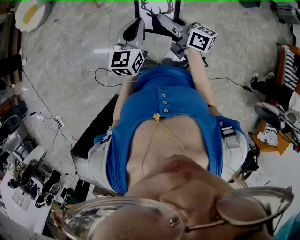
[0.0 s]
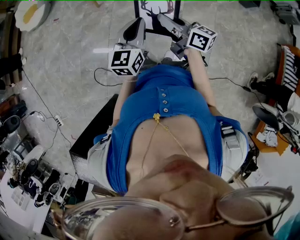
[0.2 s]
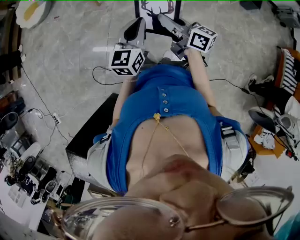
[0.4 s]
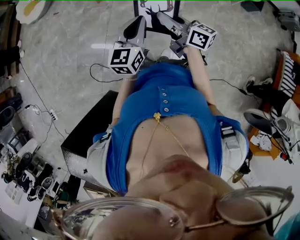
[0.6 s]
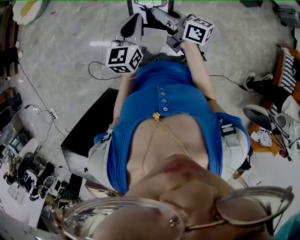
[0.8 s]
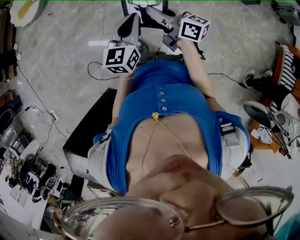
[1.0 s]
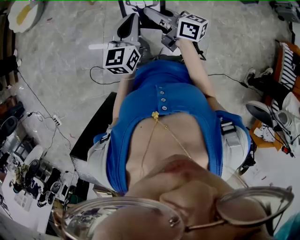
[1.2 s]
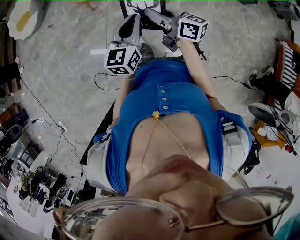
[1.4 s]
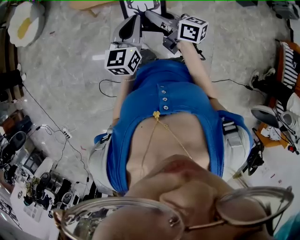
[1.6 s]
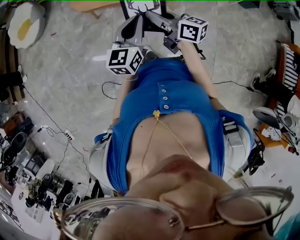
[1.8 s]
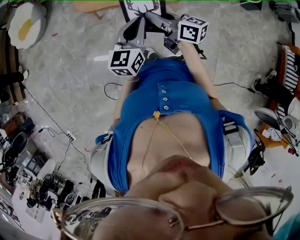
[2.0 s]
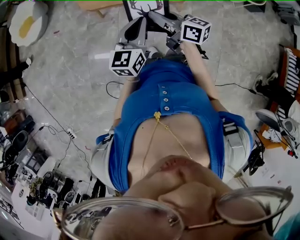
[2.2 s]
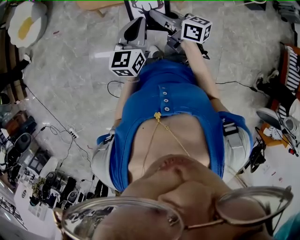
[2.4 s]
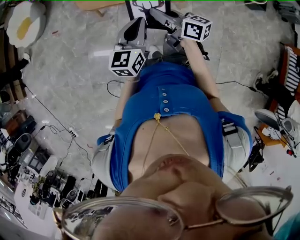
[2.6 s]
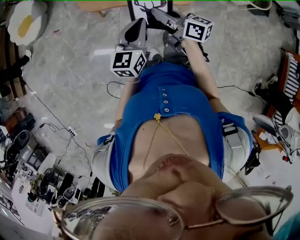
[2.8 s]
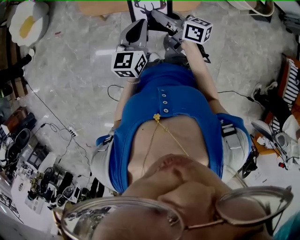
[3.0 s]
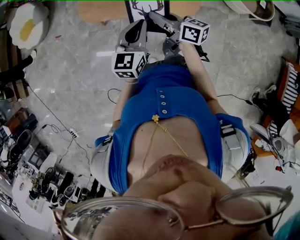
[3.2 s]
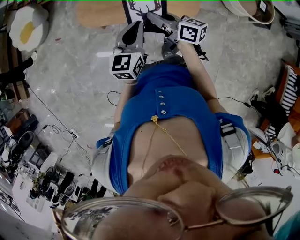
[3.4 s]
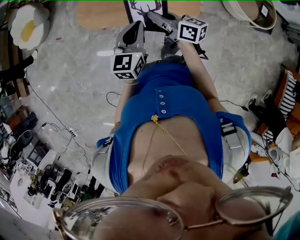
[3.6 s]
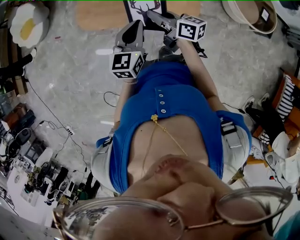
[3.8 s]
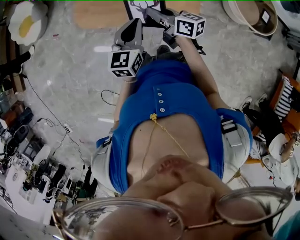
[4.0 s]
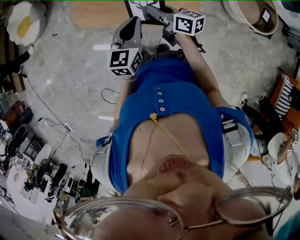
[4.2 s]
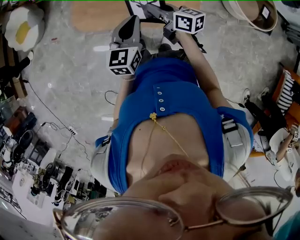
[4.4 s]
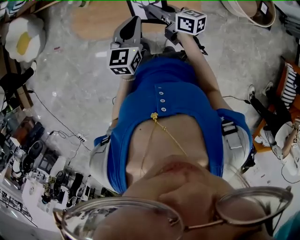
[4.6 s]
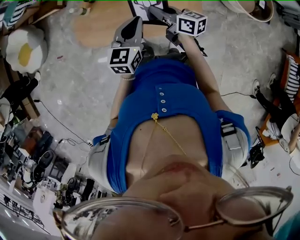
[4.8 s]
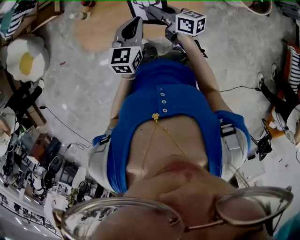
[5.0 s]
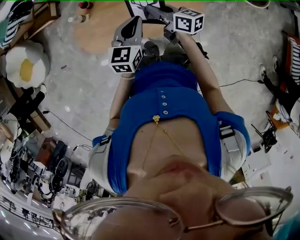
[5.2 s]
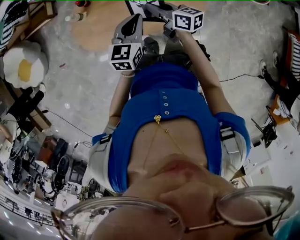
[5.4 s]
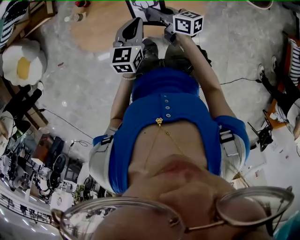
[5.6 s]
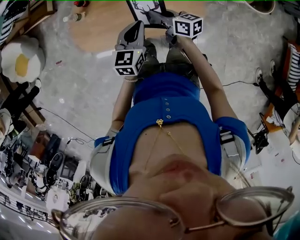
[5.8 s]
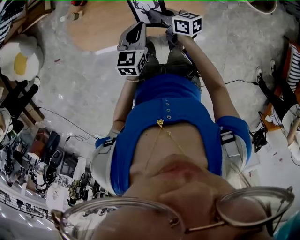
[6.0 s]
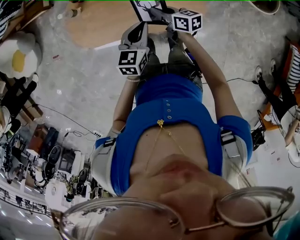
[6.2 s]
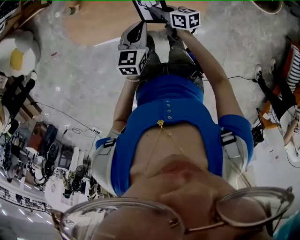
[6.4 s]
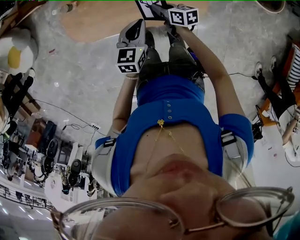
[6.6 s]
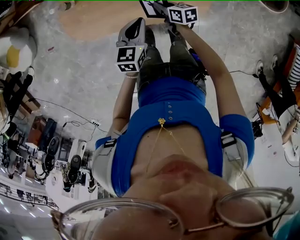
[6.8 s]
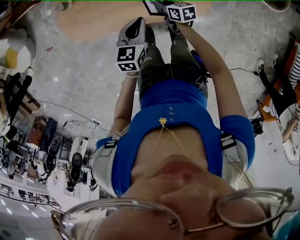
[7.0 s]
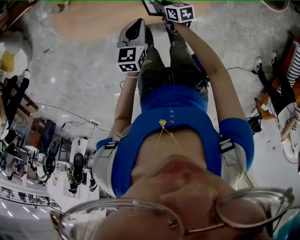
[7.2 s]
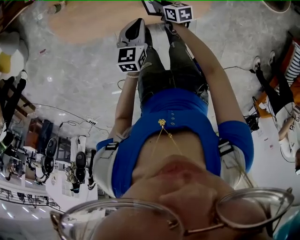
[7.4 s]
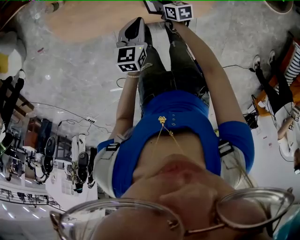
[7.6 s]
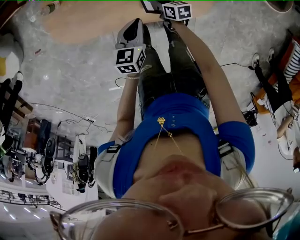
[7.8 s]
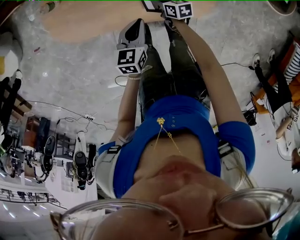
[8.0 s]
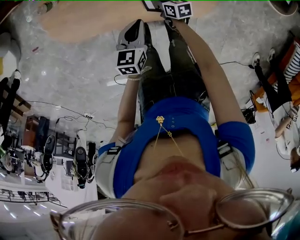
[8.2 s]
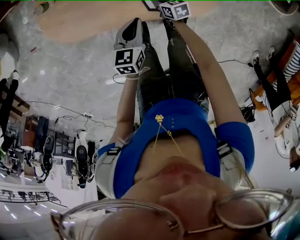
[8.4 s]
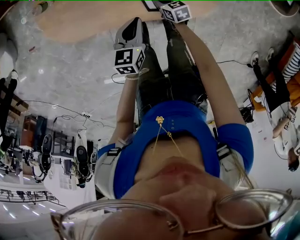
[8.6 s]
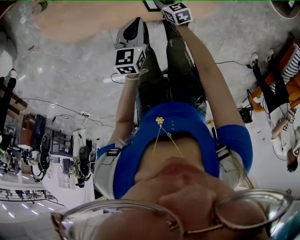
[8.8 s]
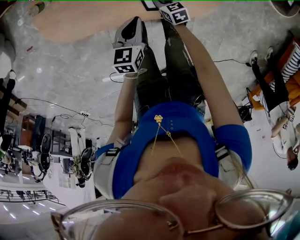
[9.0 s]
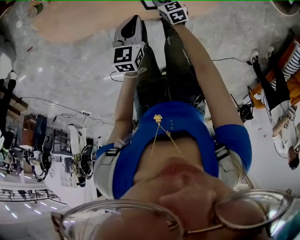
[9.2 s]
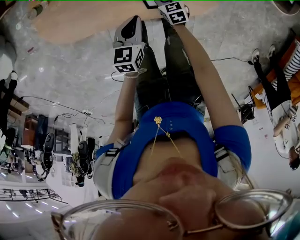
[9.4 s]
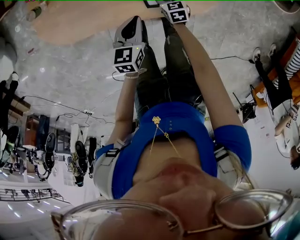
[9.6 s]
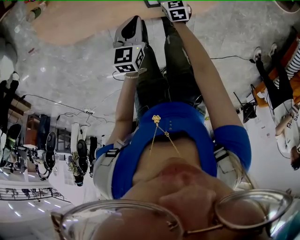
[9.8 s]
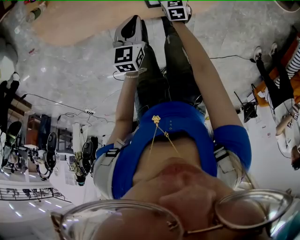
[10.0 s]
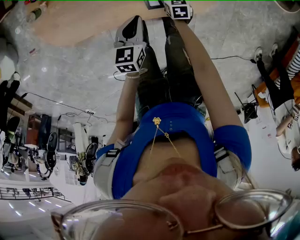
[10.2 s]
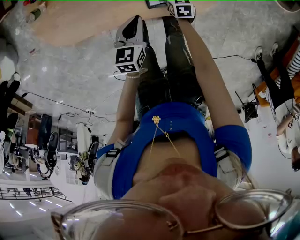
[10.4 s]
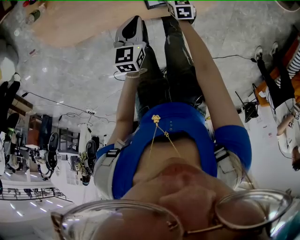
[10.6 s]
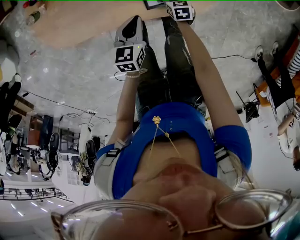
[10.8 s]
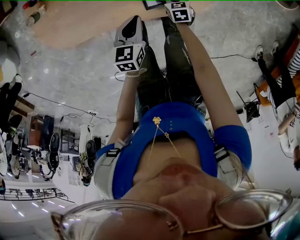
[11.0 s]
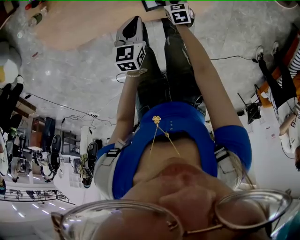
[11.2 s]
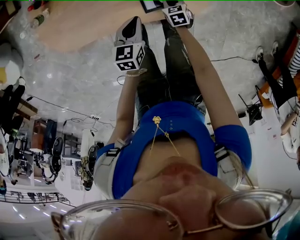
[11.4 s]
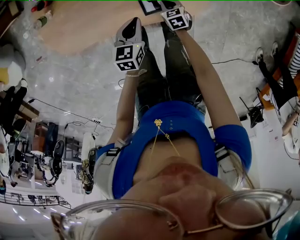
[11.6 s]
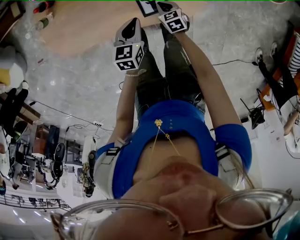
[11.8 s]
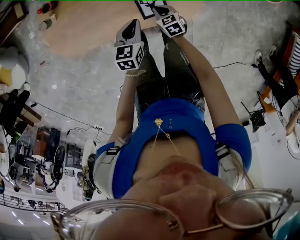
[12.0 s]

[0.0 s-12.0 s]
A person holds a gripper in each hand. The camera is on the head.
0.0 to 1.6 s: The grippers both shift forward by roughly 15 cm.
1.6 to 3.0 s: The grippers both shift forward by some 20 cm.
3.0 to 4.4 s: The two grippers go roughly 25 cm forward and to the right.
4.4 to 6.0 s: The right gripper goes some 15 cm downward and forward, while the left gripper moves forward and downward, some 15 cm, and changes its angle by some 20 degrees.
6.0 to 7.6 s: The left gripper travels downward by approximately 15 cm. Meanwhile the right gripper goes roughly 25 cm downward, and changes its angle by roughly 30 degrees.
7.6 to 9.0 s: Both grippers travel together downward, roughly 5 cm. The right gripper swivels some 20 degrees.
9.0 to 10.4 s: The right gripper shifts roughly 10 cm to the right, changes its angle by about 20 degrees, and opens up.
10.4 to 12.0 s: The left gripper is displaced upward by about 5 cm. The right gripper shifts some 10 cm upward and to the left, swivels some 20 degrees, and closes.

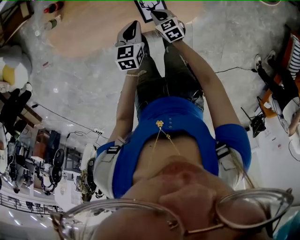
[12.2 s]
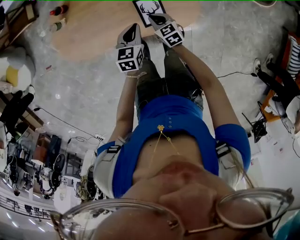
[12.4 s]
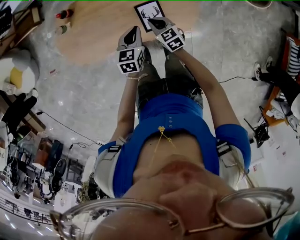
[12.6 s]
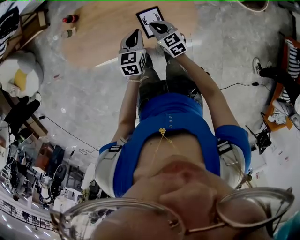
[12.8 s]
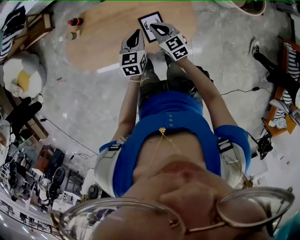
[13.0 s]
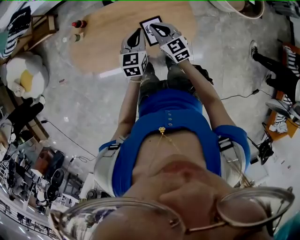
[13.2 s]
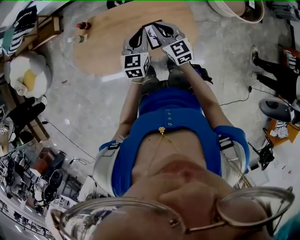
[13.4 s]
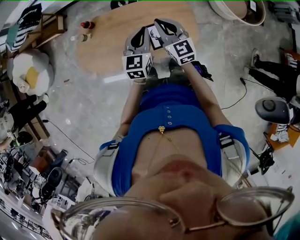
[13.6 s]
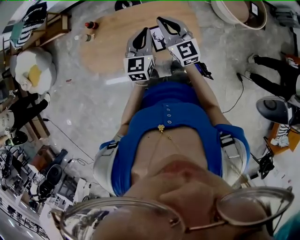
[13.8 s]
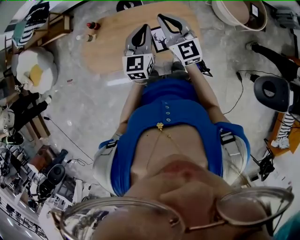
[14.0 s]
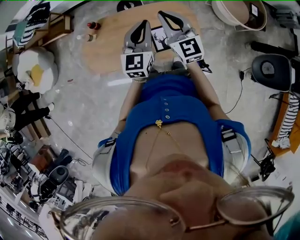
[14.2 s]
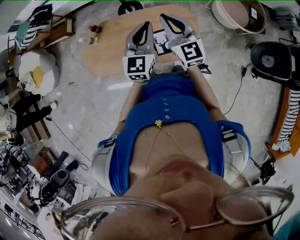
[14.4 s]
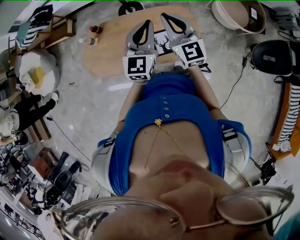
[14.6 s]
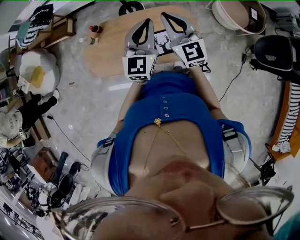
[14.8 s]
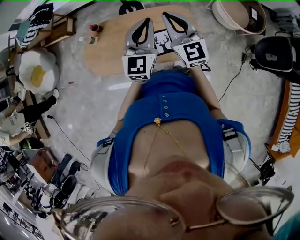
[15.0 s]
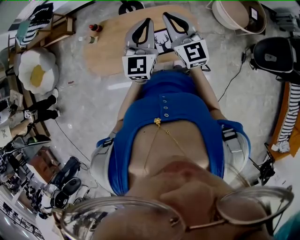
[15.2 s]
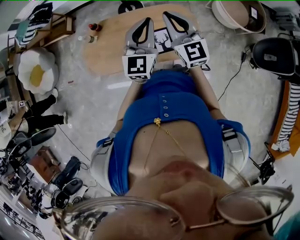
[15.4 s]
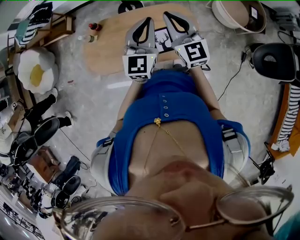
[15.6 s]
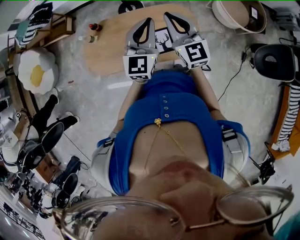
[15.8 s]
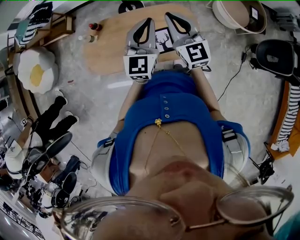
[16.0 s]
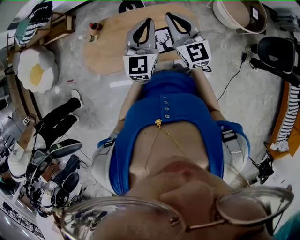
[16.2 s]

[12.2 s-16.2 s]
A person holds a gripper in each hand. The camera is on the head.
12.2 to 13.6 s: Both grippers travel together upward, roughly 30 cm. The left gripper swivels about 30 degrees; the right gripper tilts its fingers about 40 degrees upward.
13.6 to 14.8 s: The grippers both shift upward by approximately 15 cm.
14.8 to 16.2 s: Neither gripper changes place.

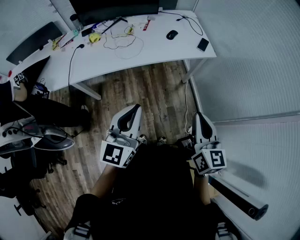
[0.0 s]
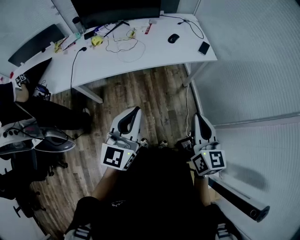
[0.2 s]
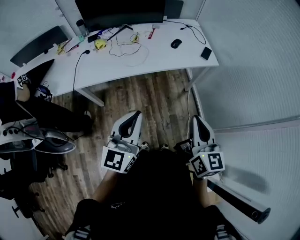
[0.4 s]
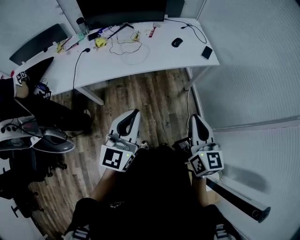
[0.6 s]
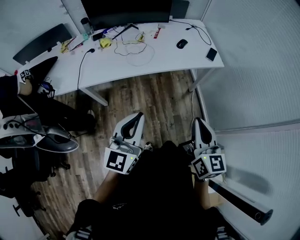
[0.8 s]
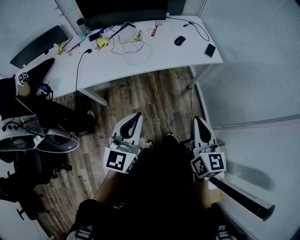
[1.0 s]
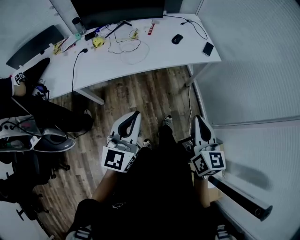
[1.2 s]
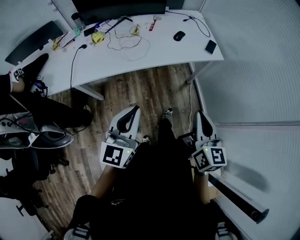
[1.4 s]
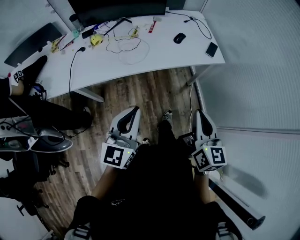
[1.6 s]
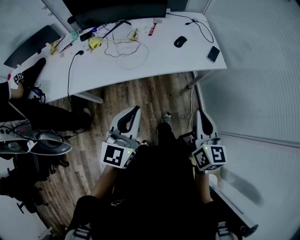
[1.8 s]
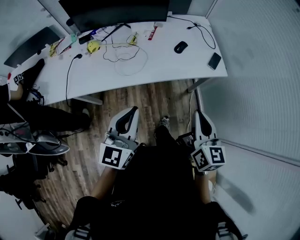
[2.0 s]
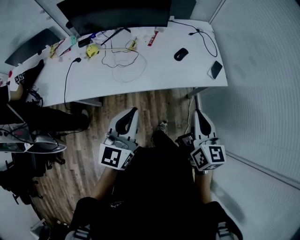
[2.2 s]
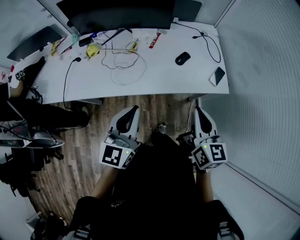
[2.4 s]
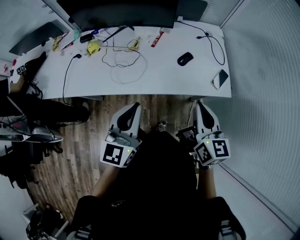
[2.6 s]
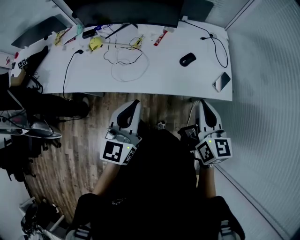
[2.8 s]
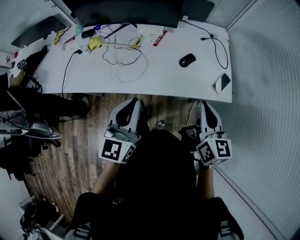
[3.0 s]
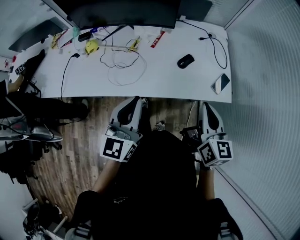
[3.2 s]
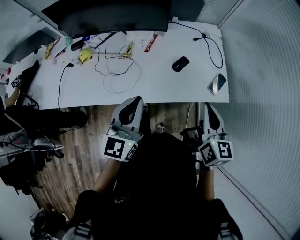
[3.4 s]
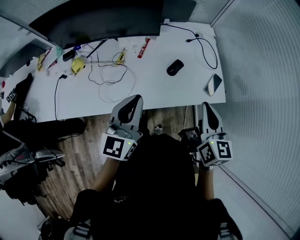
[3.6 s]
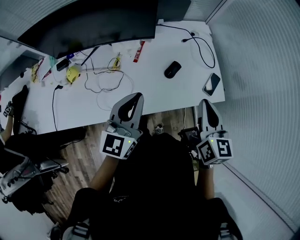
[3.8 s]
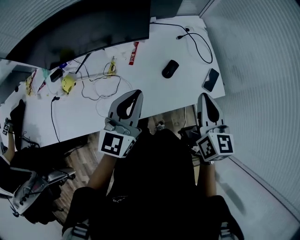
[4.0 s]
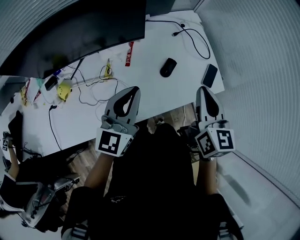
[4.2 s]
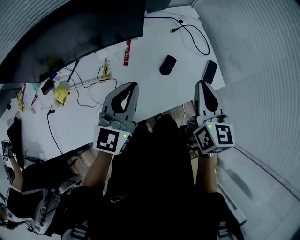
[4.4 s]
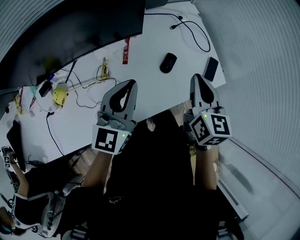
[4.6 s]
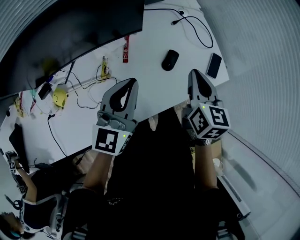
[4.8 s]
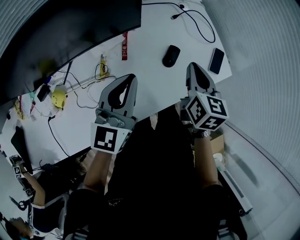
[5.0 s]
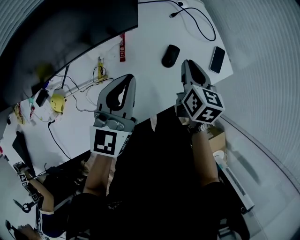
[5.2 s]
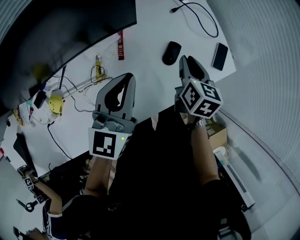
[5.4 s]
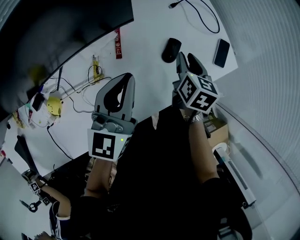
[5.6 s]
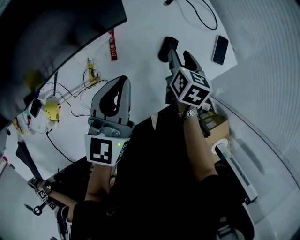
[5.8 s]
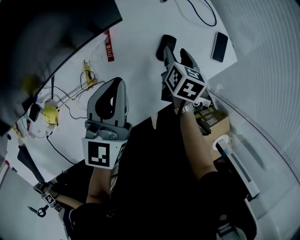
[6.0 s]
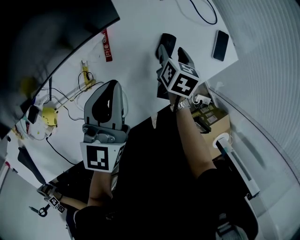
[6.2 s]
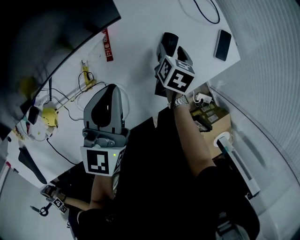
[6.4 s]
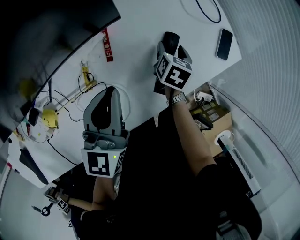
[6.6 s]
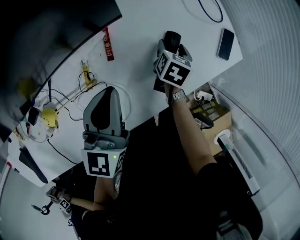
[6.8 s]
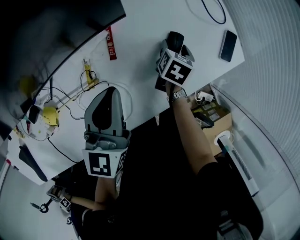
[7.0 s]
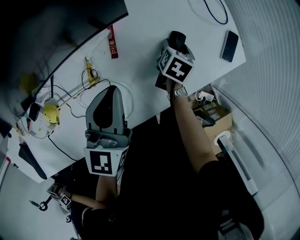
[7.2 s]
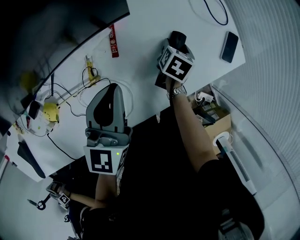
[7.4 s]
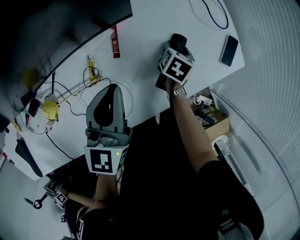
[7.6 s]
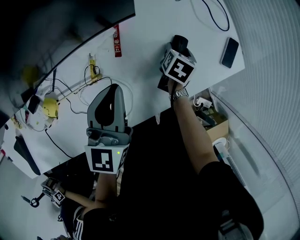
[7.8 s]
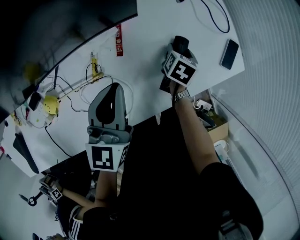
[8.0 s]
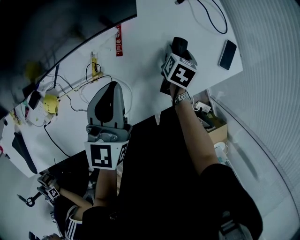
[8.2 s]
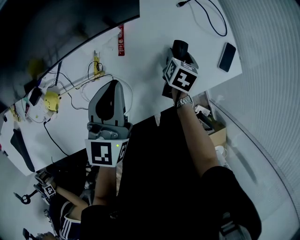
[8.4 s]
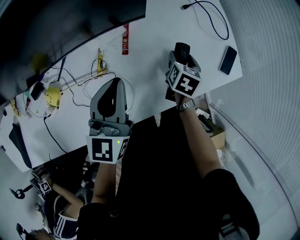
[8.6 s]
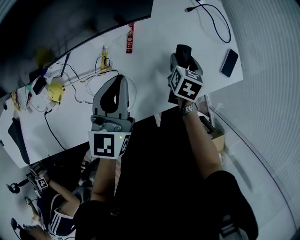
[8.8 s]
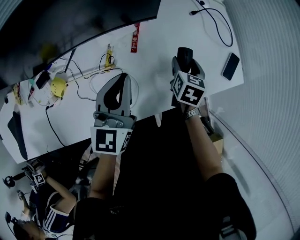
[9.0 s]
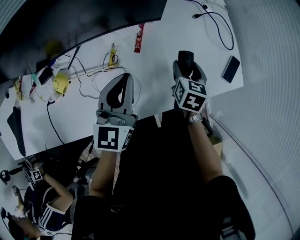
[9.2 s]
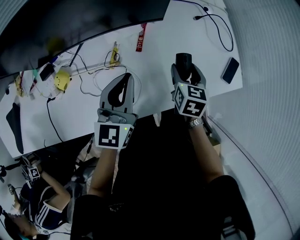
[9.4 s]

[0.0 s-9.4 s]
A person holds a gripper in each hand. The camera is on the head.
0.0 to 1.6 s: The grippers both shift forward by about 10 cm.
1.6 to 3.2 s: The grippers both shift forward by some 30 cm.
3.2 to 4.8 s: The right gripper ends up about 25 cm from where it was, and swivels roughly 30 degrees. The left gripper changes place by roughly 30 cm, and turns by some 30 degrees.
4.8 to 6.2 s: The left gripper heads downward and forward, covering some 10 cm. The right gripper shifts roughly 25 cm downward, changes its angle by roughly 30 degrees, and opens.
6.2 to 7.8 s: The right gripper travels downward by some 5 cm.
7.8 to 9.4 s: The left gripper shifts roughly 5 cm backward; the right gripper is displaced upward, backward and to the left by roughly 15 cm, and turns by about 40 degrees.
